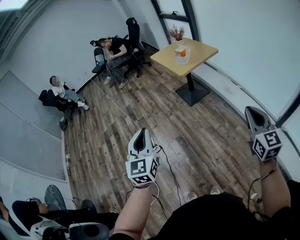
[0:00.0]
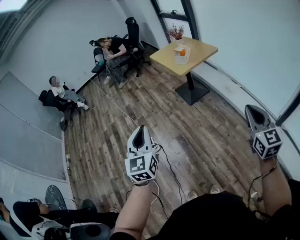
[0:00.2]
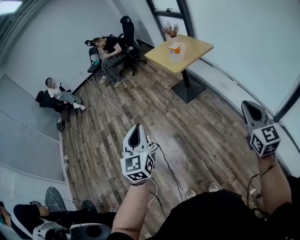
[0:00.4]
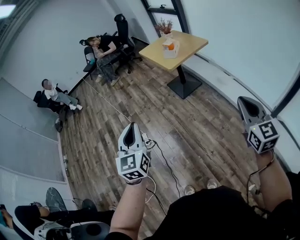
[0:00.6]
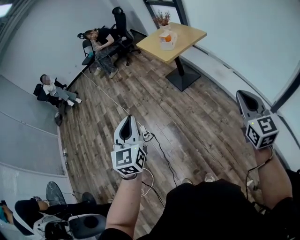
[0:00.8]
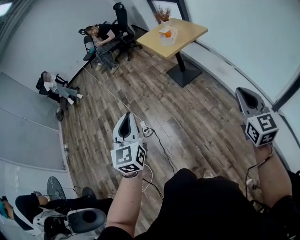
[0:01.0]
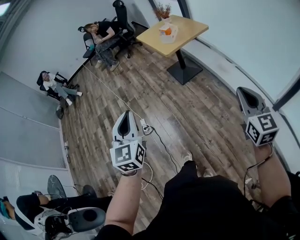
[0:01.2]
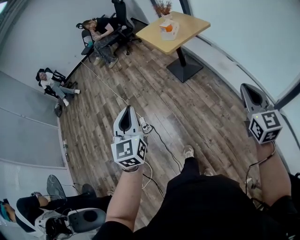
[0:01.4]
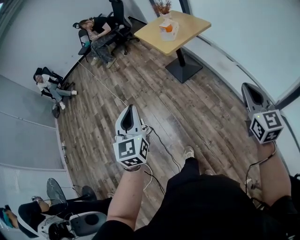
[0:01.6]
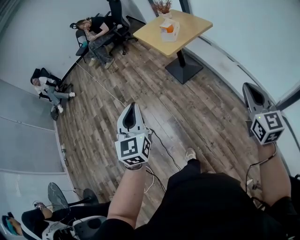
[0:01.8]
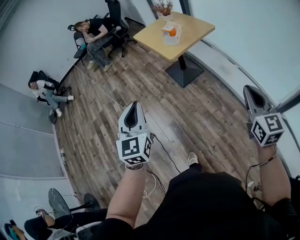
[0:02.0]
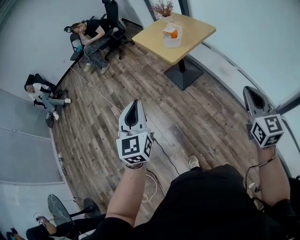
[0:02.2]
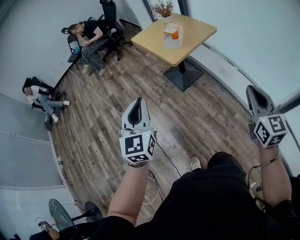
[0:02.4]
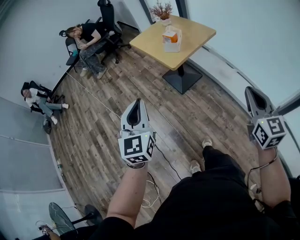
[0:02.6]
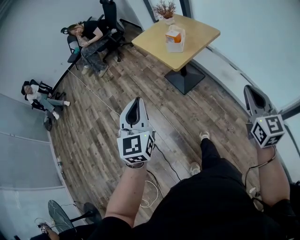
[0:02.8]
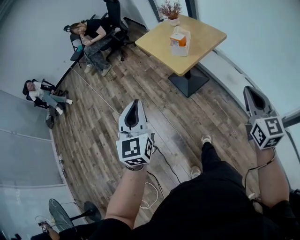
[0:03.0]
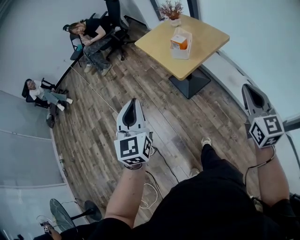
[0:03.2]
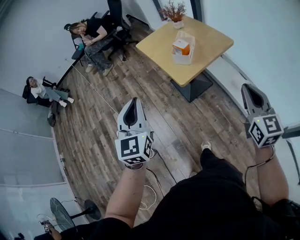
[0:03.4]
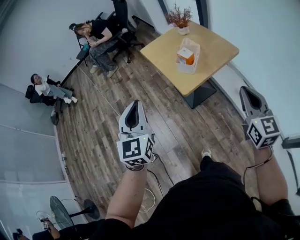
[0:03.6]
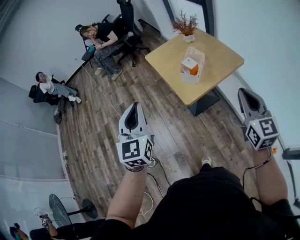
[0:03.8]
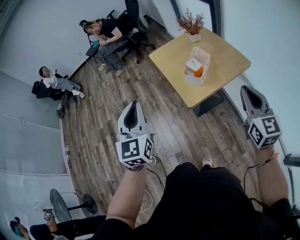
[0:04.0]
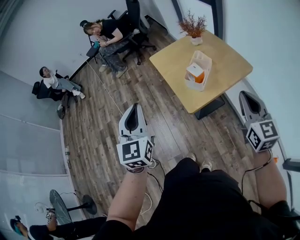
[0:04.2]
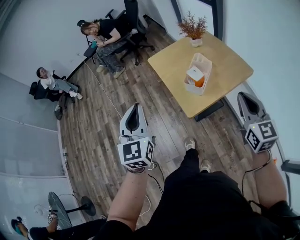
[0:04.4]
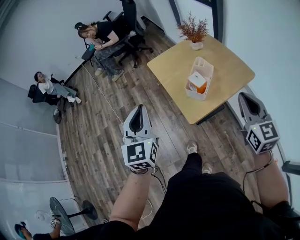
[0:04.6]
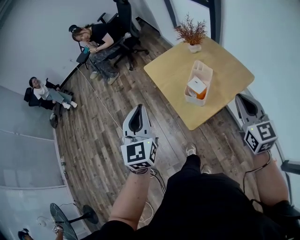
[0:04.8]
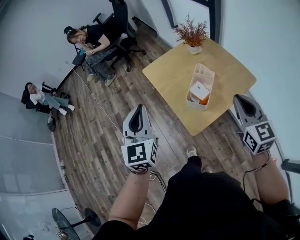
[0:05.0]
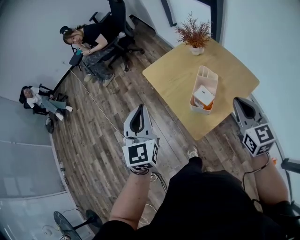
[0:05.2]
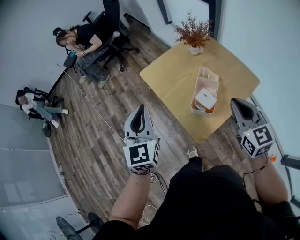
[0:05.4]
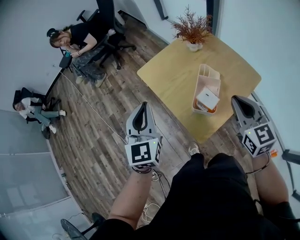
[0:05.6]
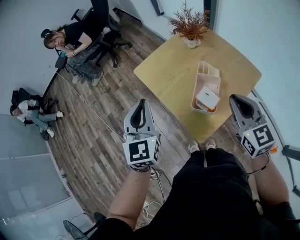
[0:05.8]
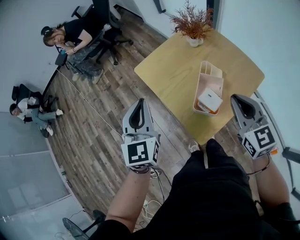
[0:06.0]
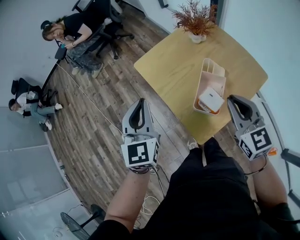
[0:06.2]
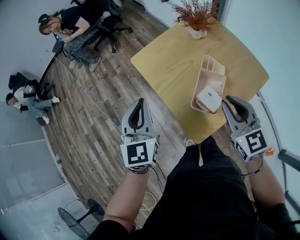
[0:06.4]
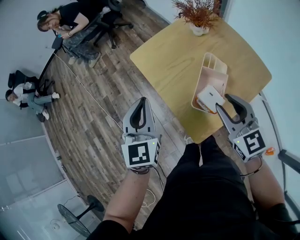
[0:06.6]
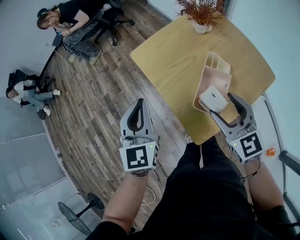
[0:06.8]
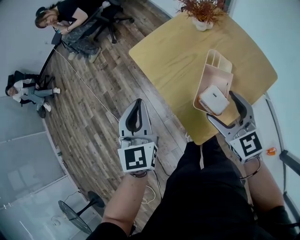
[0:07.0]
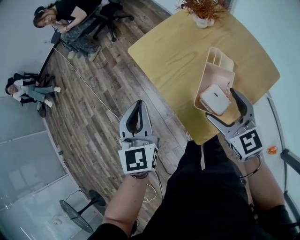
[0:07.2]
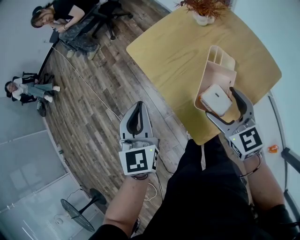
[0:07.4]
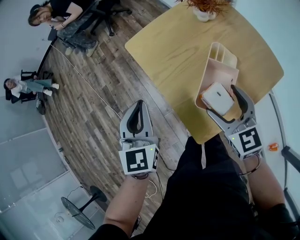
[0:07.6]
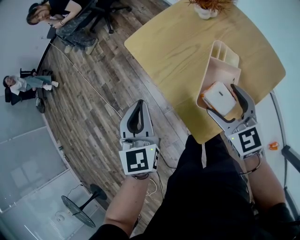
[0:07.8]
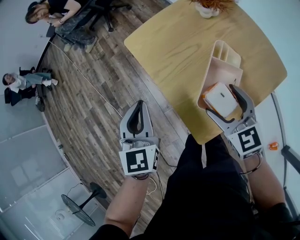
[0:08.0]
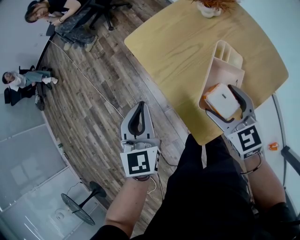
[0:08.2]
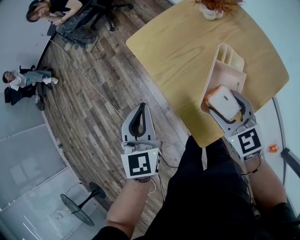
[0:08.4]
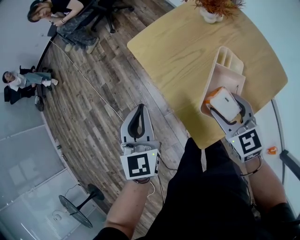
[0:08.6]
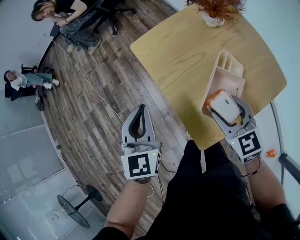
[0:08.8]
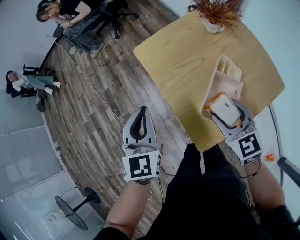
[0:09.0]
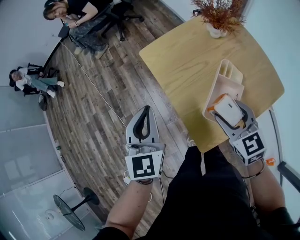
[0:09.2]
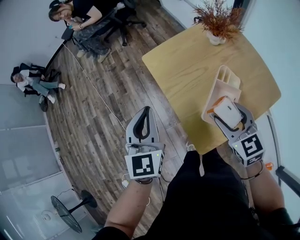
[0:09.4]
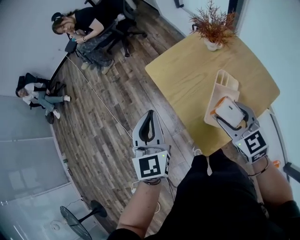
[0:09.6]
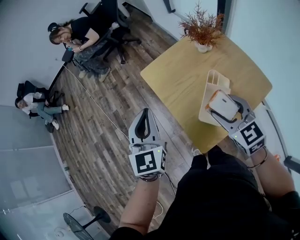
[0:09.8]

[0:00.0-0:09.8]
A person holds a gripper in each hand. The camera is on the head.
0:00.0 to 0:01.4: Both grippers move to the right and forward, some 10 cm.
0:01.4 to 0:02.8: The grippers both shift forward by some 25 cm.
0:02.8 to 0:04.2: Both grippers travel together forward, some 30 cm.
0:04.2 to 0:05.6: The grippers both shift forward by roughly 25 cm.
0:05.6 to 0:07.0: The left gripper heads downward, covering about 10 cm. The right gripper heads downward and to the left, covering approximately 15 cm, and opens its fingers.
0:07.0 to 0:08.4: Both grippers move downward, about 5 cm.
0:08.4 to 0:09.8: Both grippers travel together upward, roughly 10 cm.

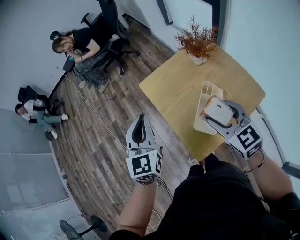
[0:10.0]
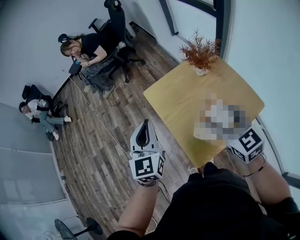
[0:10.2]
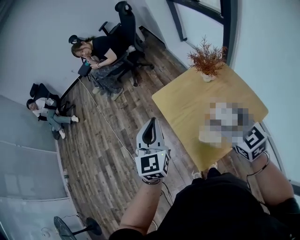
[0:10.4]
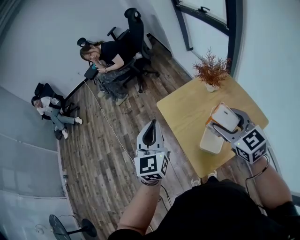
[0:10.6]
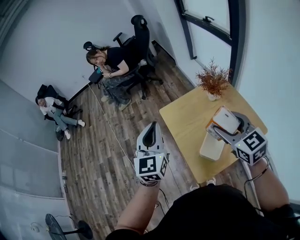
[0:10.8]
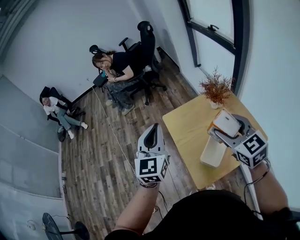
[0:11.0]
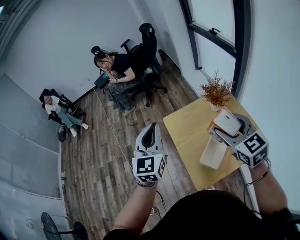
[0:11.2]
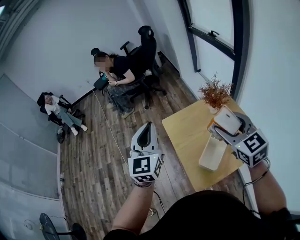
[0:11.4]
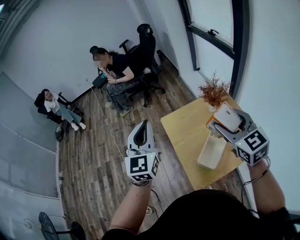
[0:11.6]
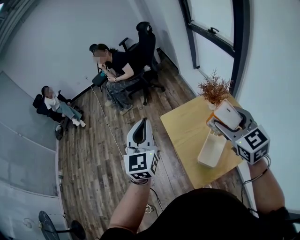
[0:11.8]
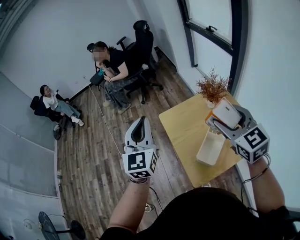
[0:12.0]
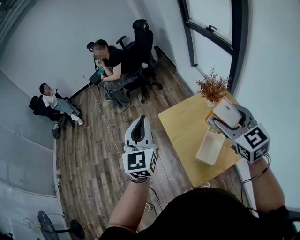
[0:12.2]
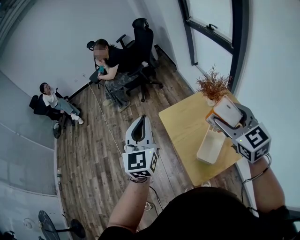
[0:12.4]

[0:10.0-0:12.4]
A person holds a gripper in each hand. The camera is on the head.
0:10.0 to 0:11.2: Both grippers move upward, approximately 15 cm.
0:11.2 to 0:12.4: The grippers move only a little.

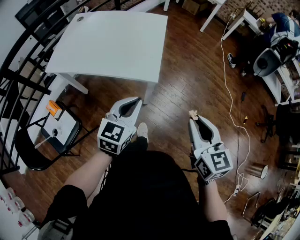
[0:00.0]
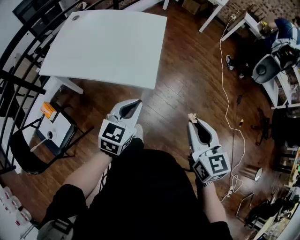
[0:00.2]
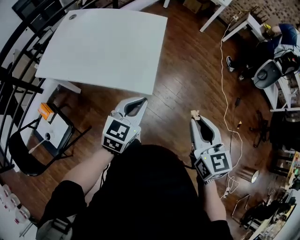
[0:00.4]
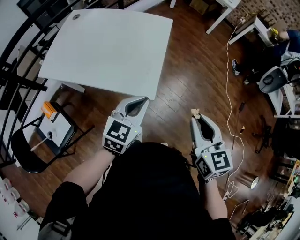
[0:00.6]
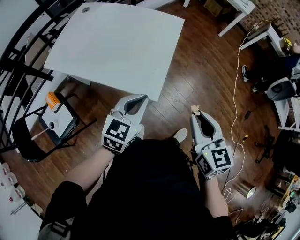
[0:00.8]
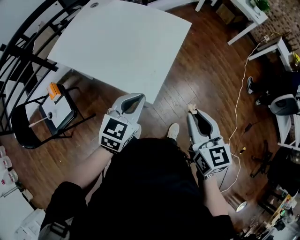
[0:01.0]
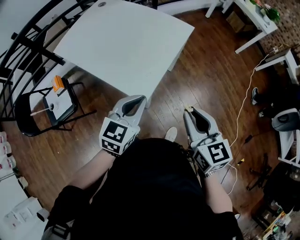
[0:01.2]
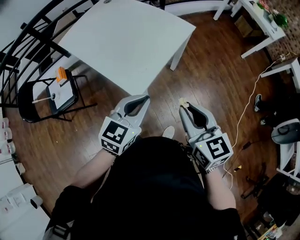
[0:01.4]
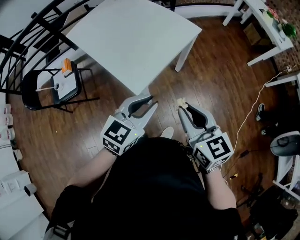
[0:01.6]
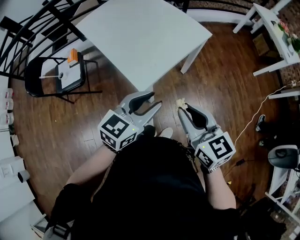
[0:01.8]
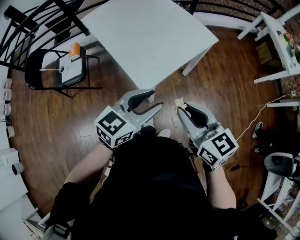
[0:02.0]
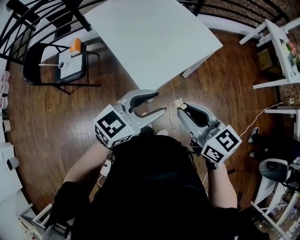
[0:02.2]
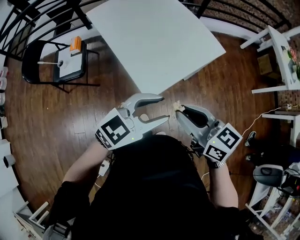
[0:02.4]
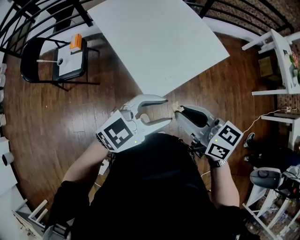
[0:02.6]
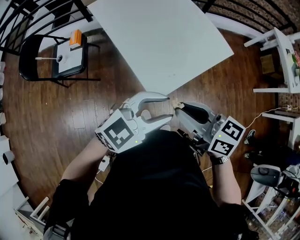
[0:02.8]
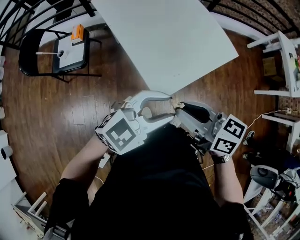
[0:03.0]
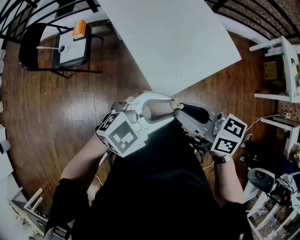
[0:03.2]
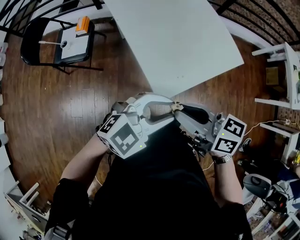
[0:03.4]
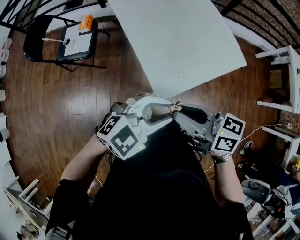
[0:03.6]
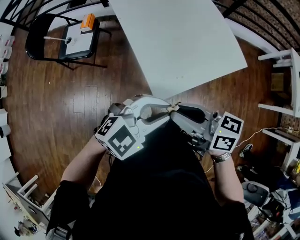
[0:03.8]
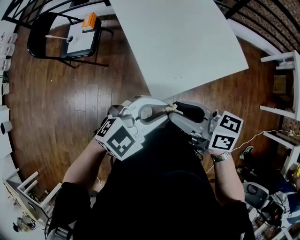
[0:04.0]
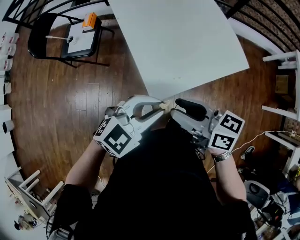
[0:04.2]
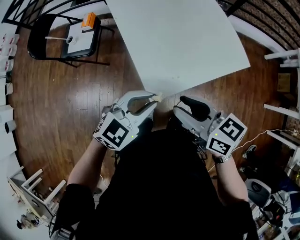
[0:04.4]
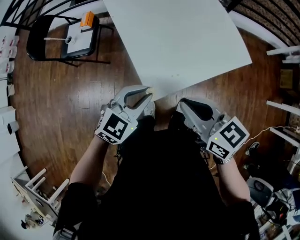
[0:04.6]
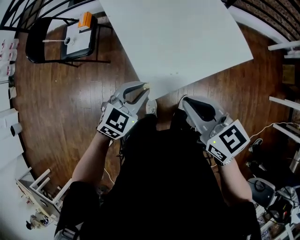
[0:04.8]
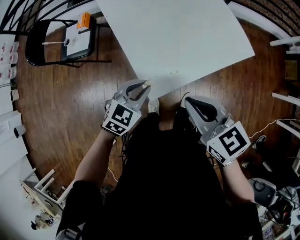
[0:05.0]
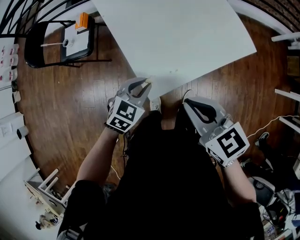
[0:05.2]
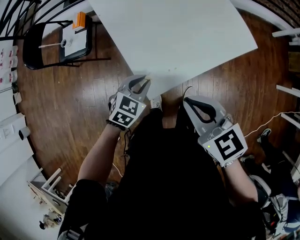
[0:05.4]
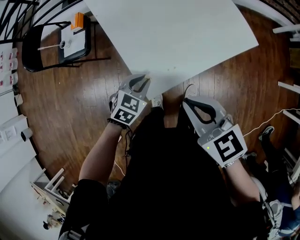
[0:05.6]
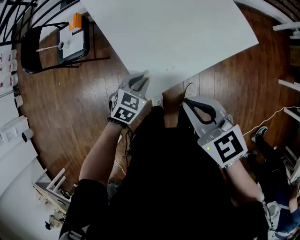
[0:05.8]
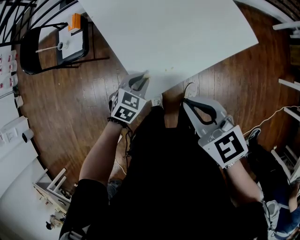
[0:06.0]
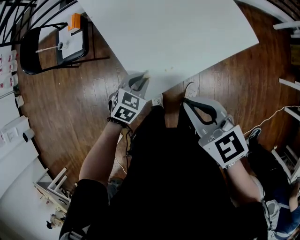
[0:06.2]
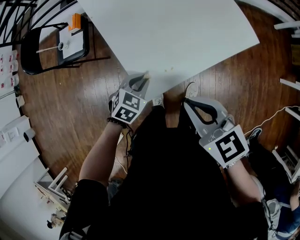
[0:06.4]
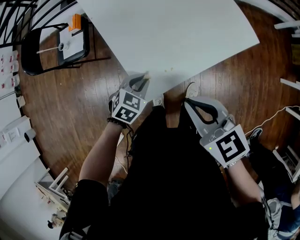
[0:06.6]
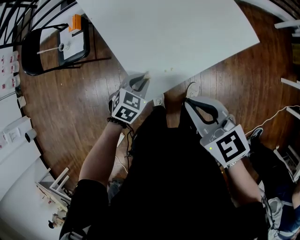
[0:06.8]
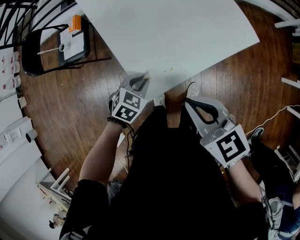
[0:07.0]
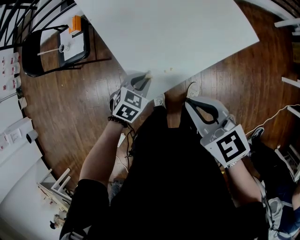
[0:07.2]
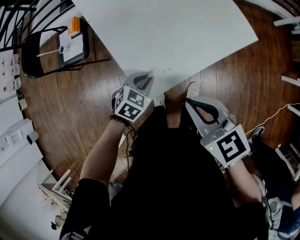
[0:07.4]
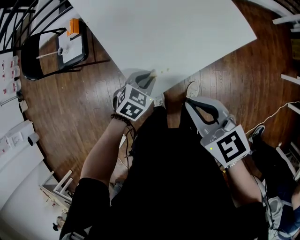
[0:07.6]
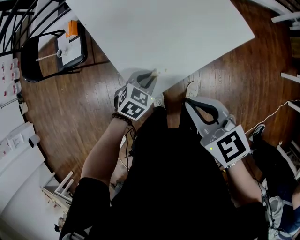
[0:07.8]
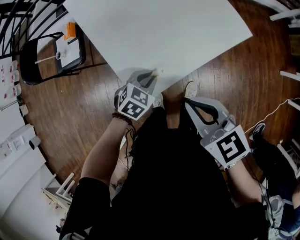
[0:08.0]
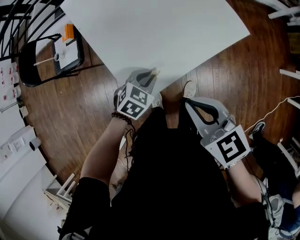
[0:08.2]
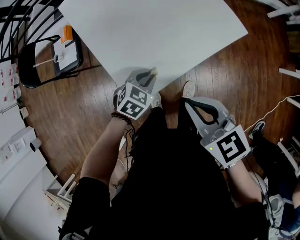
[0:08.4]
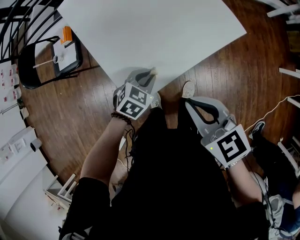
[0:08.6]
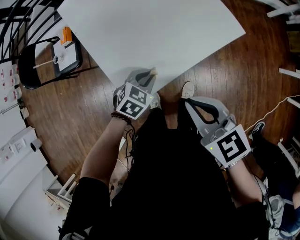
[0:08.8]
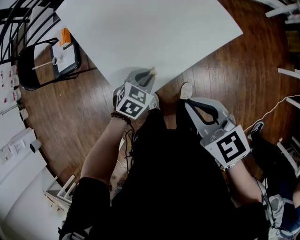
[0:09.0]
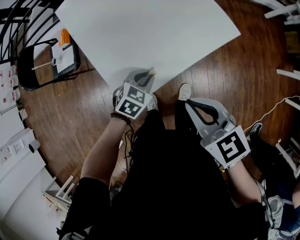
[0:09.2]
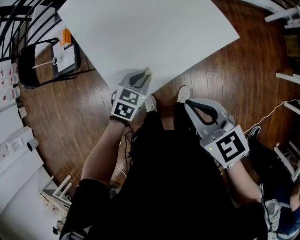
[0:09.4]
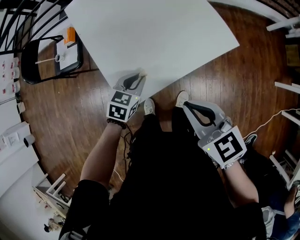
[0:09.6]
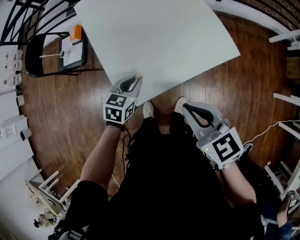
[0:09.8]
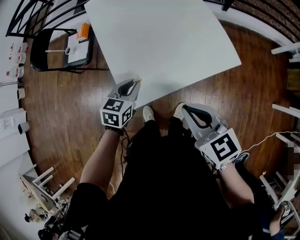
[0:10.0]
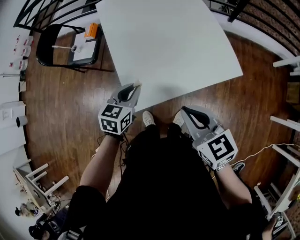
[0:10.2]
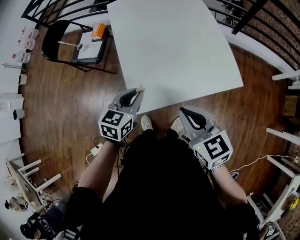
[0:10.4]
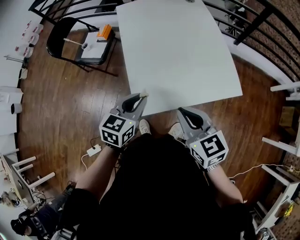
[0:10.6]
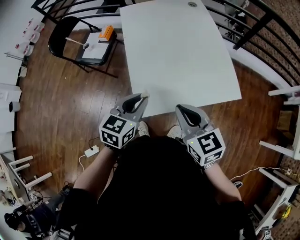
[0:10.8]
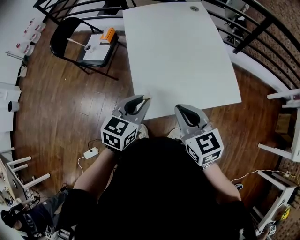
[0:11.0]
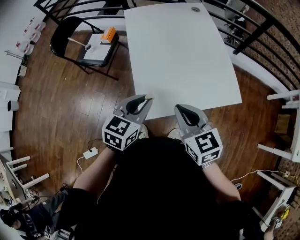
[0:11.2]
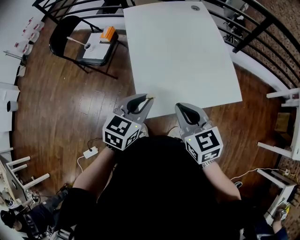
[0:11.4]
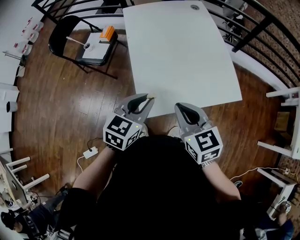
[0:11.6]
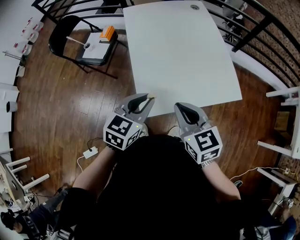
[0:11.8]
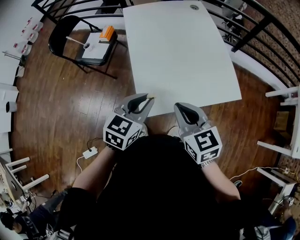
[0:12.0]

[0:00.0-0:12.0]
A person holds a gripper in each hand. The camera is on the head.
0:00.0 to 0:01.6: The right gripper moves some 30 cm, and swivels roughly 50 degrees. The left gripper changes place by roughly 25 cm, and changes its angle by some 20 degrees.
0:01.6 to 0:03.0: The left gripper moves about 10 cm, and opens, while the right gripper ends up about 20 cm from where it was, and swivels roughly 40 degrees.
0:03.0 to 0:04.4: The right gripper ends up roughly 5 cm from where it was. The left gripper shifts some 5 cm downward, changes its angle by approximately 20 degrees, and closes its fingers.
0:04.4 to 0:06.0: The left gripper shifts about 20 cm downward and forward, and turns by approximately 30 degrees. The right gripper is displaced to the right by approximately 5 cm, and closes.
0:06.0 to 0:07.6: The grippers move only a little.
0:07.6 to 0:09.0: Both grippers travel together to the right, roughly 5 cm.
0:09.0 to 0:10.4: The left gripper is displaced upward and to the left by about 15 cm, and changes its angle by some 50 degrees.
0:10.4 to 0:12.0: The right gripper shifts some 5 cm to the left; the left gripper heads upward, covering roughly 5 cm.
